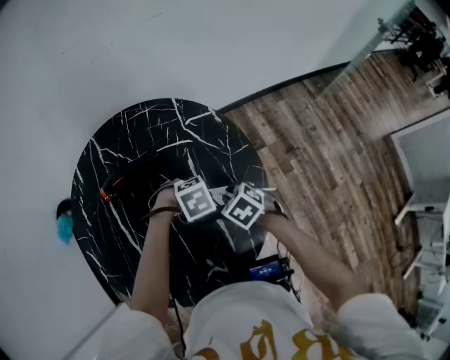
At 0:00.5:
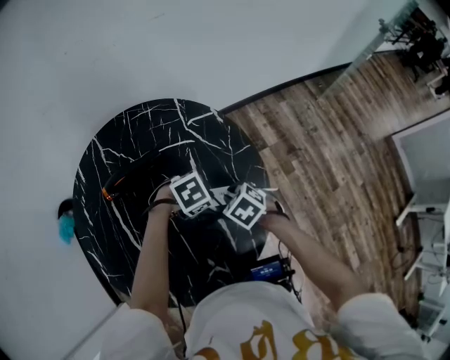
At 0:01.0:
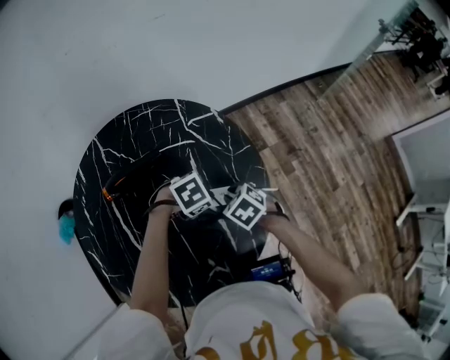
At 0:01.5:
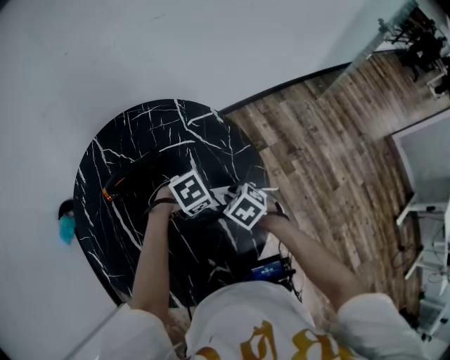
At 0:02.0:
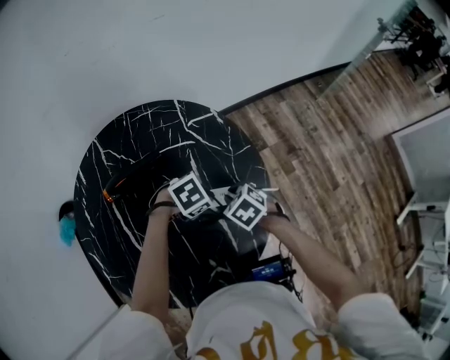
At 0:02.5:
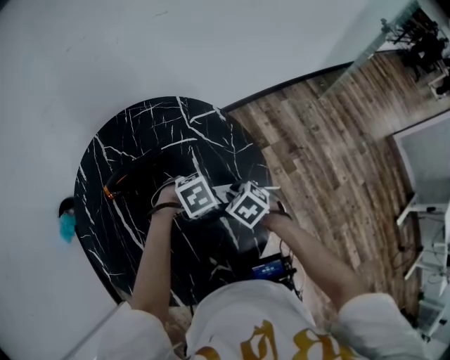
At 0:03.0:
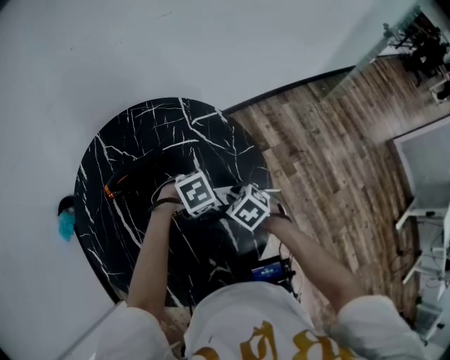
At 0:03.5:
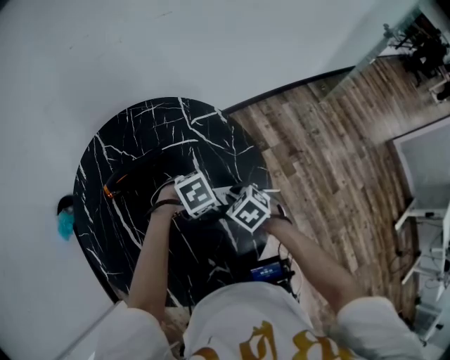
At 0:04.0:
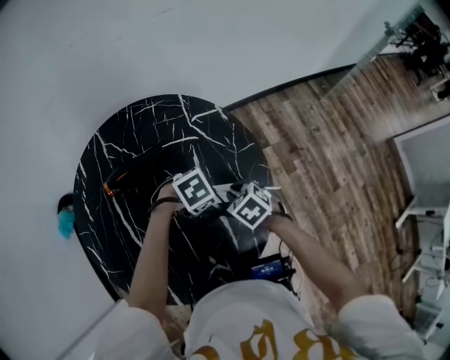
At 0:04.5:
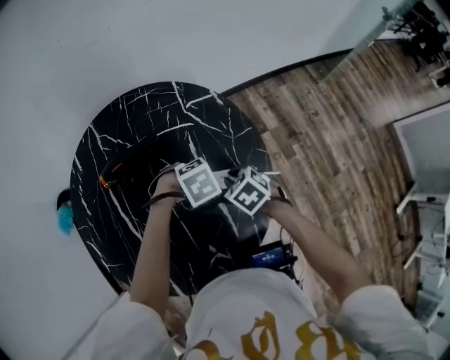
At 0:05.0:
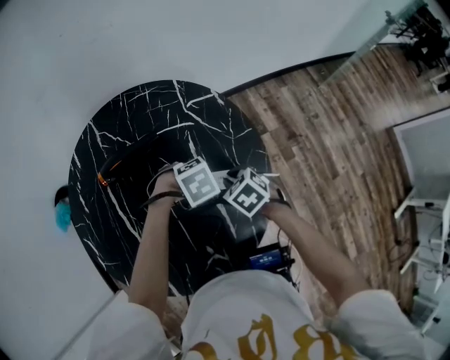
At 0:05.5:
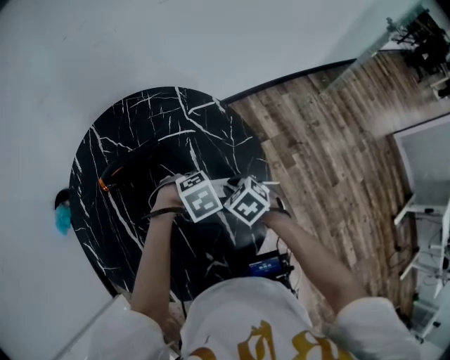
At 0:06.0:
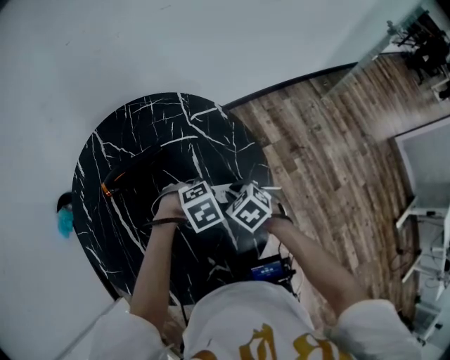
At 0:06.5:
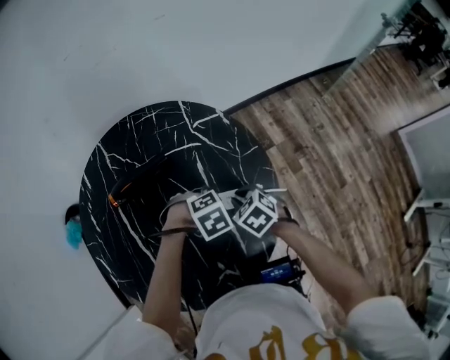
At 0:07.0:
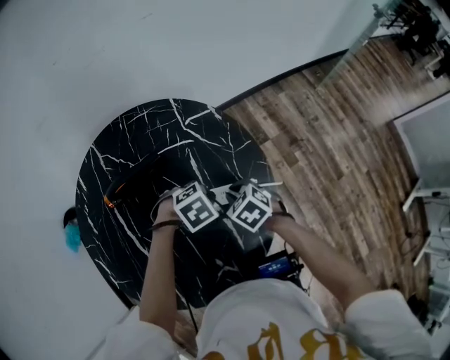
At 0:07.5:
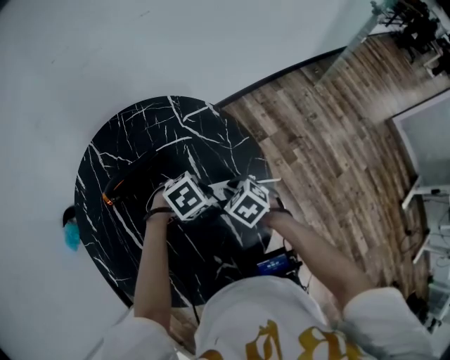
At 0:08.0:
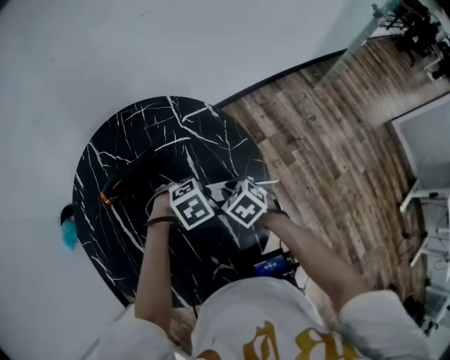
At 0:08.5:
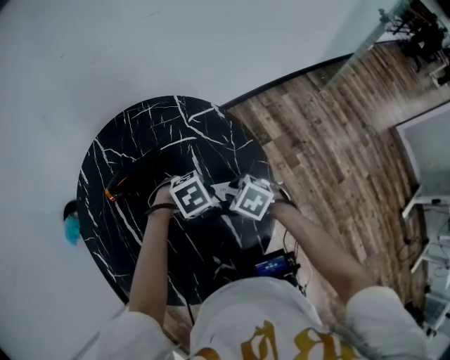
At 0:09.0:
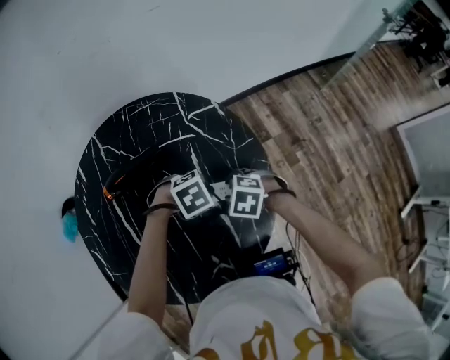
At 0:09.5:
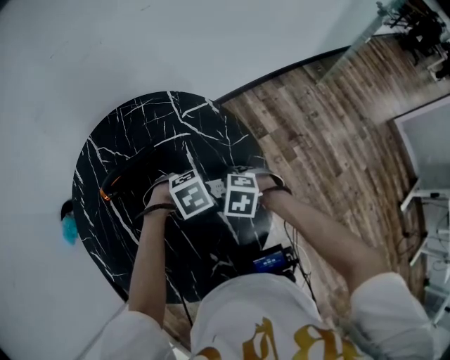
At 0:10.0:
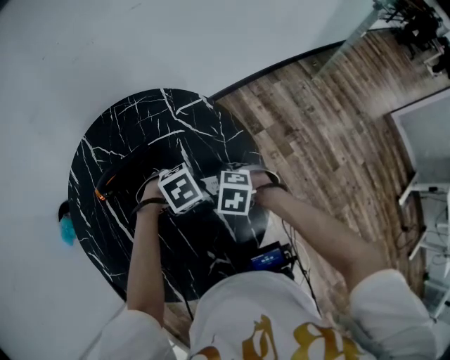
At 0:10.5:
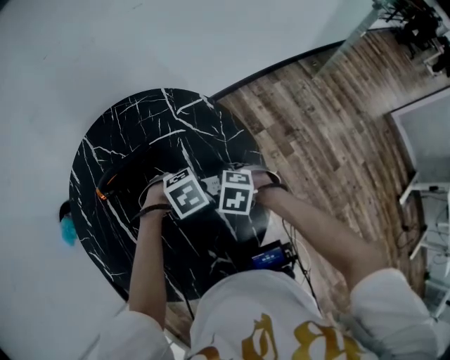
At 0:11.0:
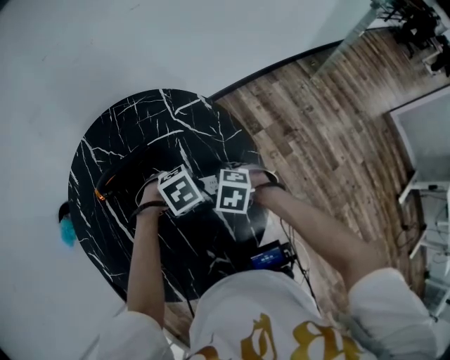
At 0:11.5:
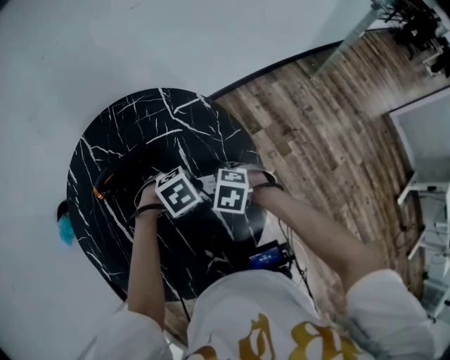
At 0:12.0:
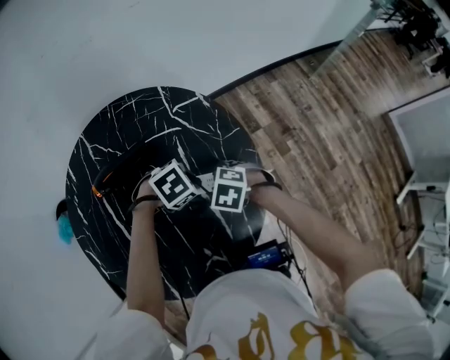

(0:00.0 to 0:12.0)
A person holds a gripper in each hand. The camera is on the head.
0:00.0 - 0:08.0: The grippers stay close to where they were, moving slightly.
0:08.0 - 0:10.0: The right gripper swivels some 30 degrees, and opens up.
0:10.0 - 0:12.0: The grippers stay close to where they were, moving slightly.

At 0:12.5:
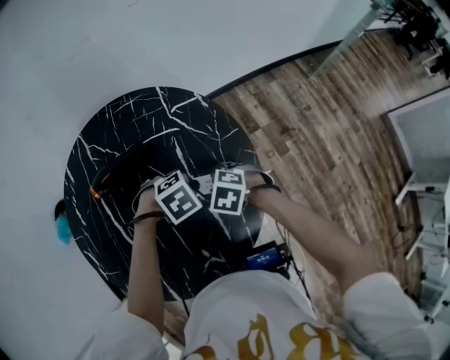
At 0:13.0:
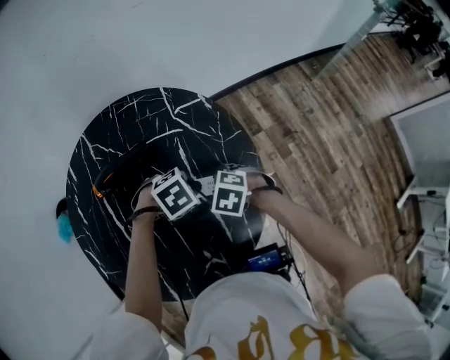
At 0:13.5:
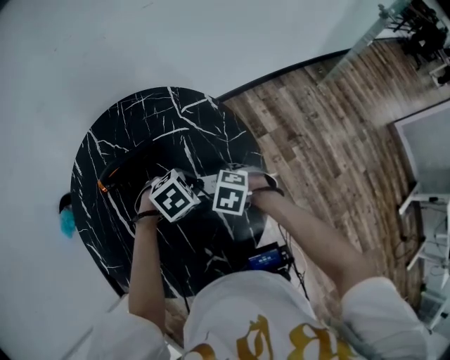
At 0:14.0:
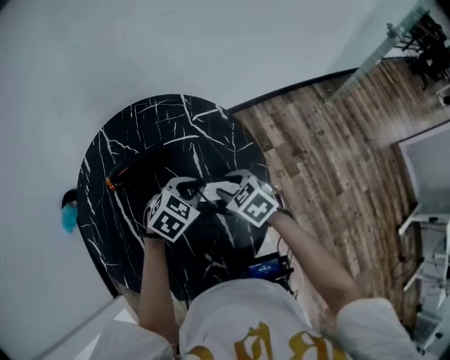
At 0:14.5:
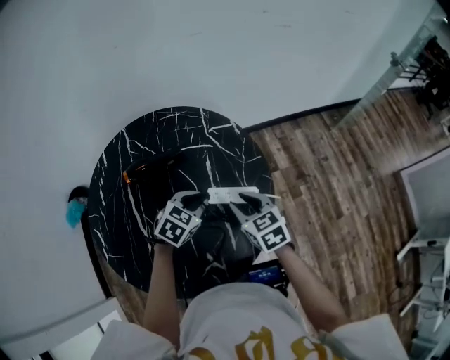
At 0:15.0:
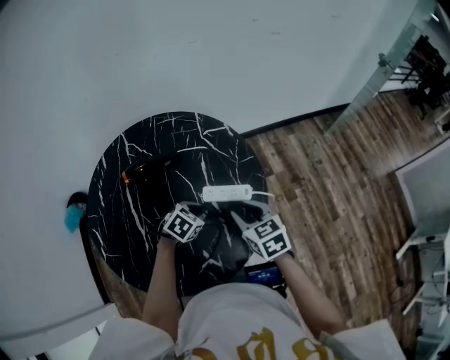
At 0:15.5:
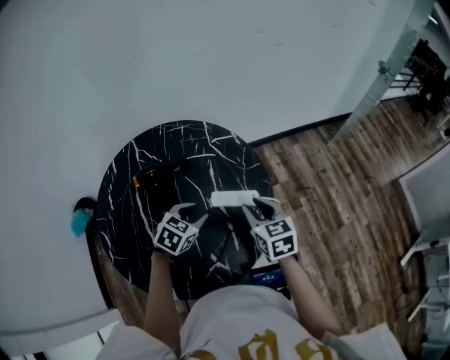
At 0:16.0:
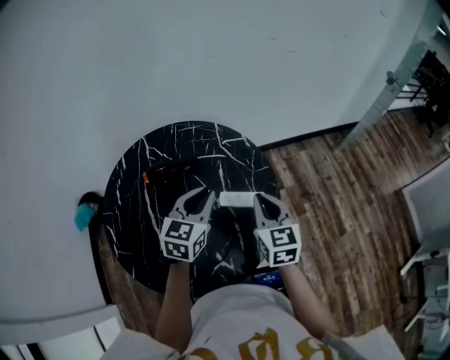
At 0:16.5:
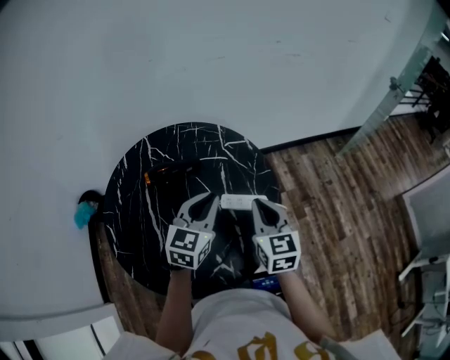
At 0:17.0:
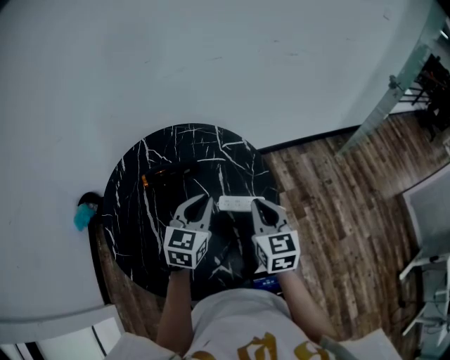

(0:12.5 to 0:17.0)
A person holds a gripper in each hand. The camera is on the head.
0:12.5 - 0:14.5: The right gripper goes roughly 10 cm upward, and tilts its fingers approximately 30 degrees upward. The left gripper ends up some 5 cm from where it was, and turns by approximately 40 degrees.
0:14.5 - 0:17.0: The grippers both shift upward by about 10 cm. The left gripper swivels roughly 40 degrees. Meanwhile the right gripper turns by about 30 degrees, and closes up.

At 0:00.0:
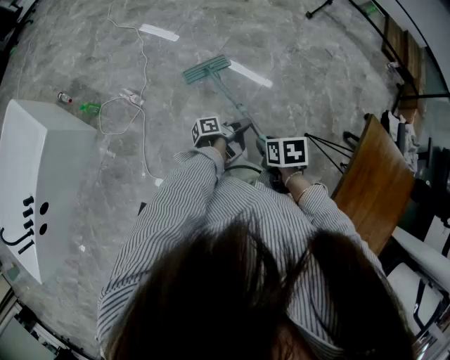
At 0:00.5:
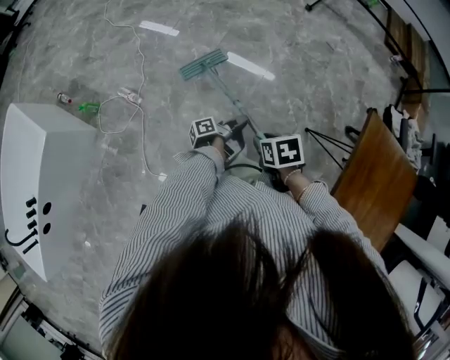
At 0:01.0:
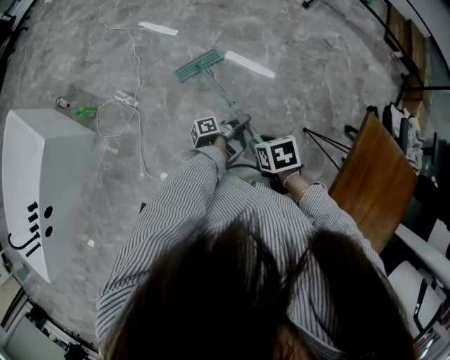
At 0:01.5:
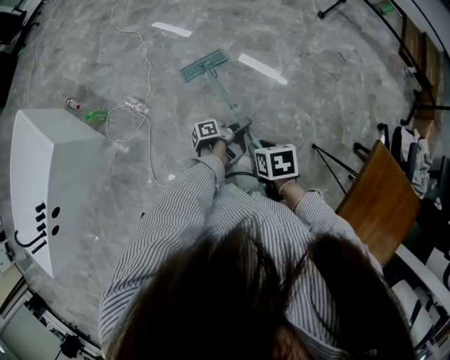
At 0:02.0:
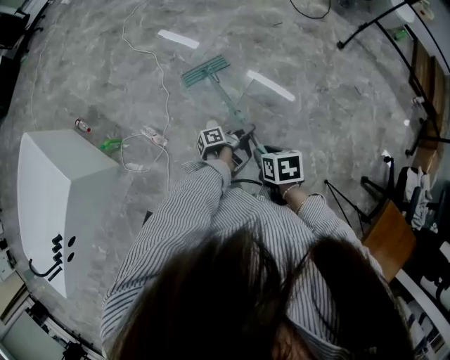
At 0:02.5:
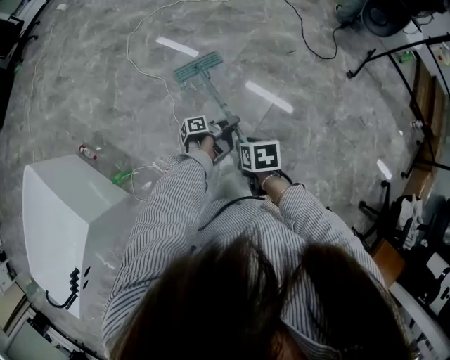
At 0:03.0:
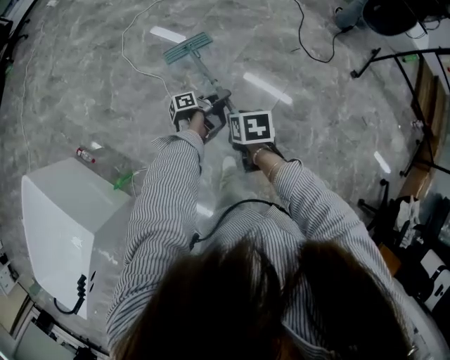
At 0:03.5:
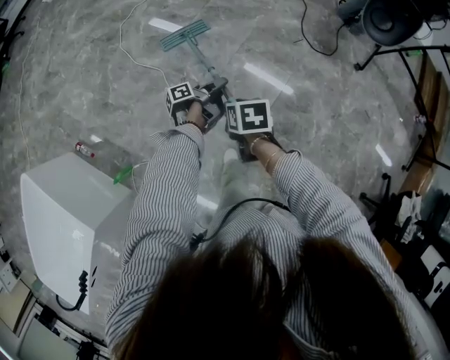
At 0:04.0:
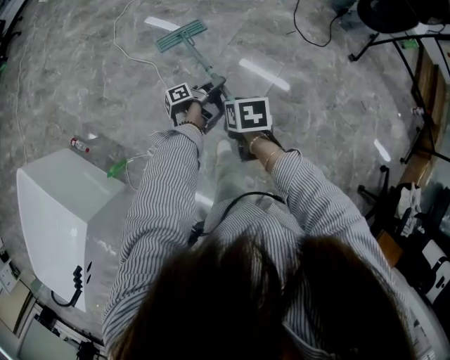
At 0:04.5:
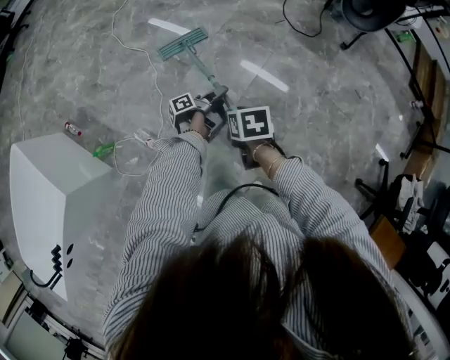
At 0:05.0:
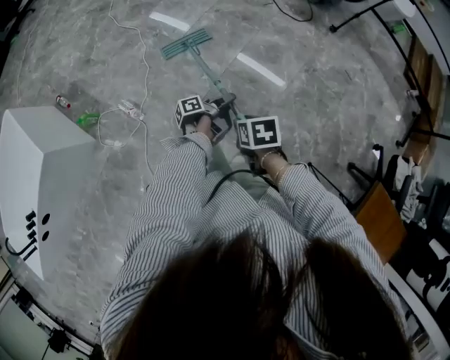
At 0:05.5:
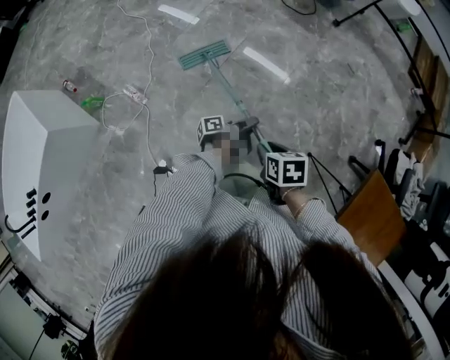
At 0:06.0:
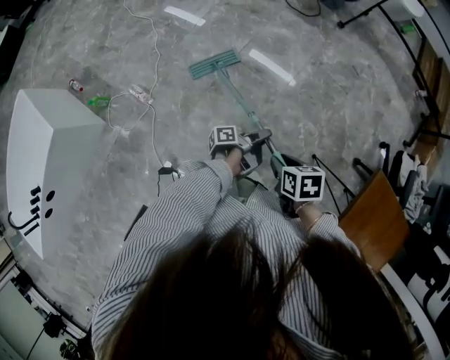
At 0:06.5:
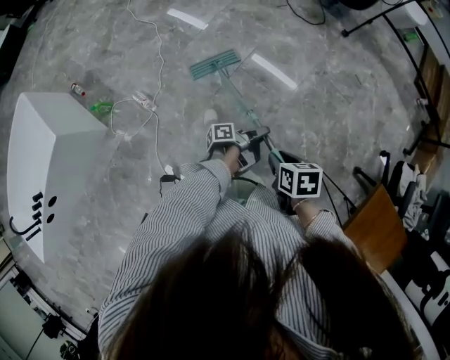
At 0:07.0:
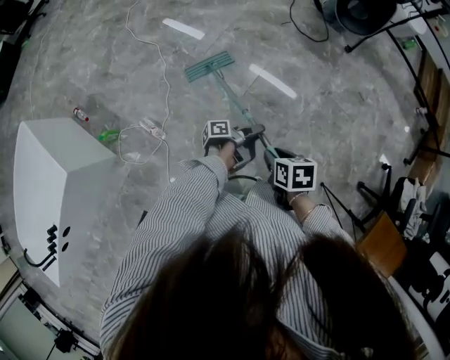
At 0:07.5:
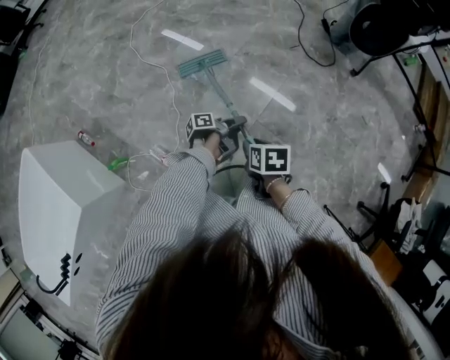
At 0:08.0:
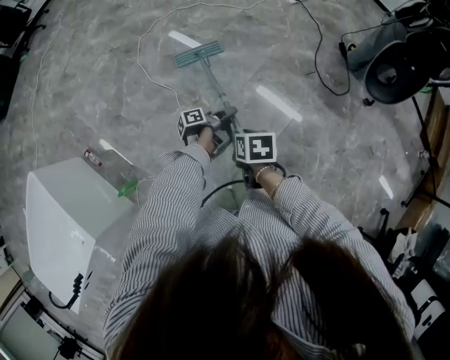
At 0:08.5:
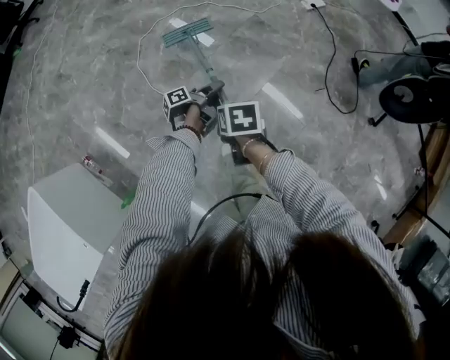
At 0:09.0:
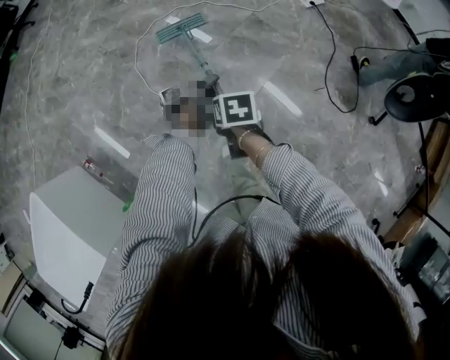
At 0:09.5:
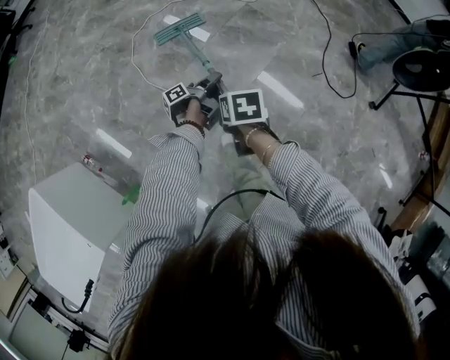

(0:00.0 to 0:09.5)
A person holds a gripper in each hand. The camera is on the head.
0:00.0 - 0:02.0: The right gripper shifts by roughly 35 cm.
0:02.0 - 0:04.0: The right gripper moves some 40 cm.
0:04.0 - 0:05.5: The right gripper changes place by approximately 70 cm.
0:05.5 - 0:07.5: The right gripper shifts by approximately 50 cm.
0:07.5 - 0:09.5: The right gripper moves about 50 cm.

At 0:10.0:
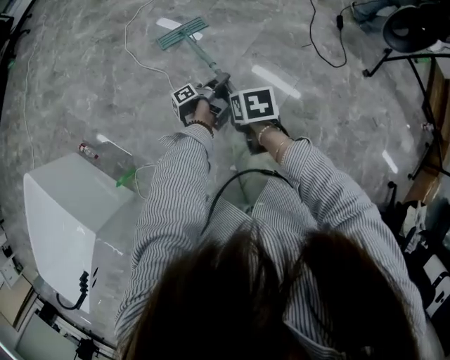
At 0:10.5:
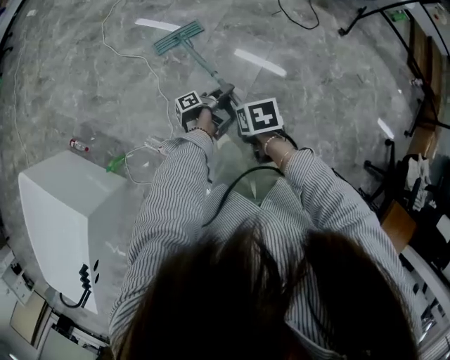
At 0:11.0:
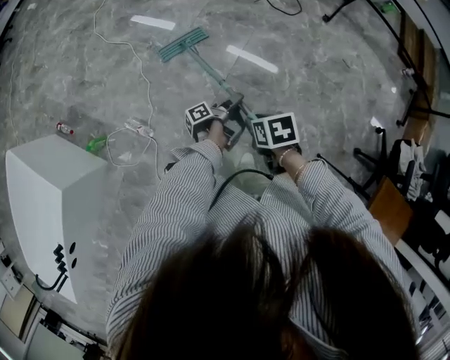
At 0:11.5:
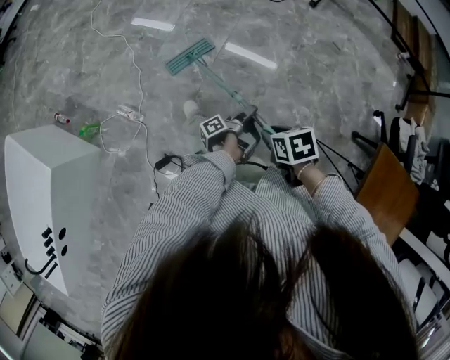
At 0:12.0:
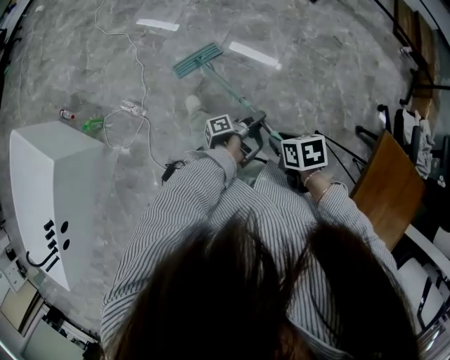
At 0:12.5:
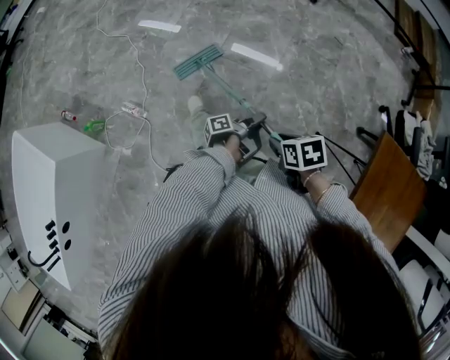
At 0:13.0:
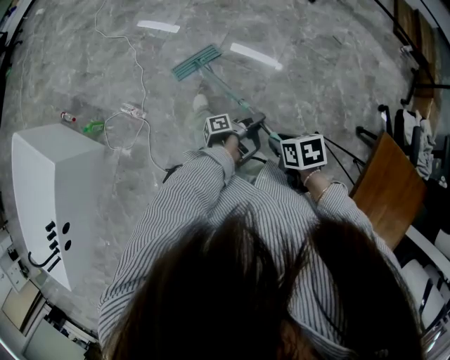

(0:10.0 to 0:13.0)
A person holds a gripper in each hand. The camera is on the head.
0:10.0 - 0:11.5: The right gripper changes place by about 70 cm.
0:11.5 - 0:13.0: The right gripper ends up approximately 10 cm from where it was.
